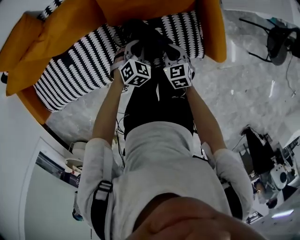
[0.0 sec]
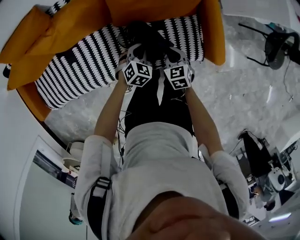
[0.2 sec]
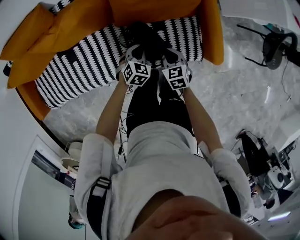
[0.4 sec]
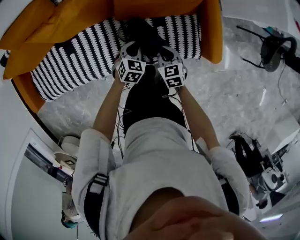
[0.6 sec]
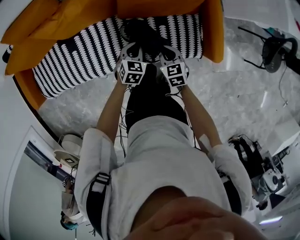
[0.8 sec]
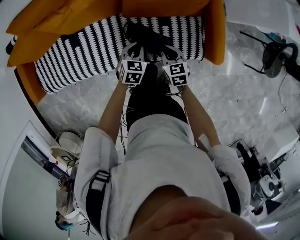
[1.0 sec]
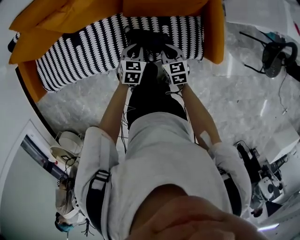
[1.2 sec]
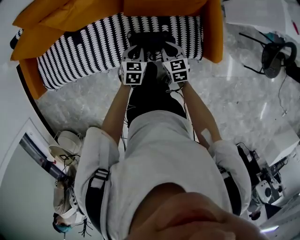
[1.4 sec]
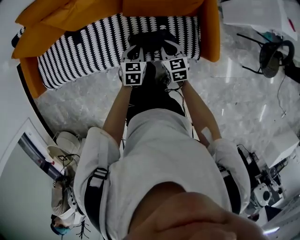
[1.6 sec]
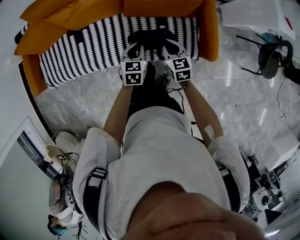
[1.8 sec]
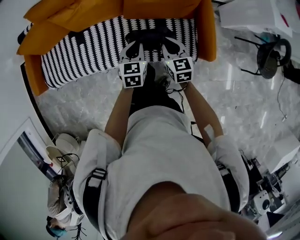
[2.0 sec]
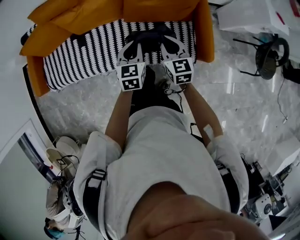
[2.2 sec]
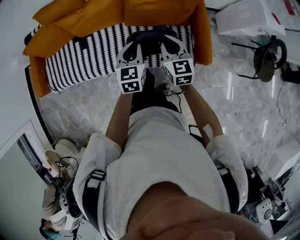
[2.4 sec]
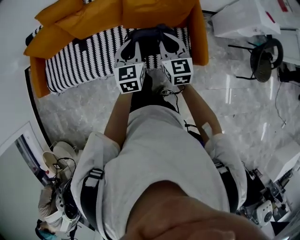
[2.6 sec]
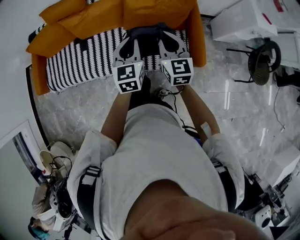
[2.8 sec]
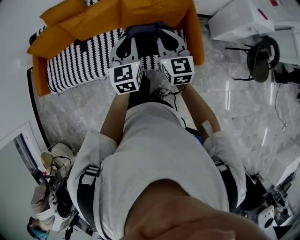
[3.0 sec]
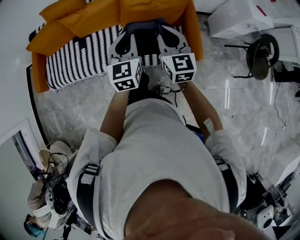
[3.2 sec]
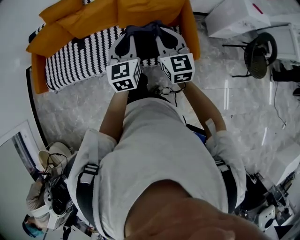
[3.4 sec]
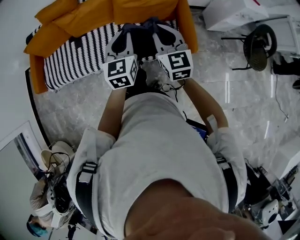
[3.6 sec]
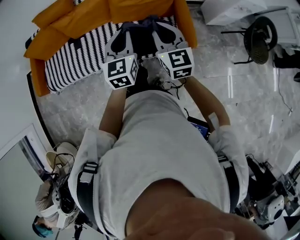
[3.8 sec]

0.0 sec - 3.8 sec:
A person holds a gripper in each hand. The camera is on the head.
0.0 sec - 1.2 sec: The right gripper heads upward and to the left, covering roughly 10 cm; the left gripper moves backward, to the left and upward, some 10 cm, and rotates roughly 40 degrees.
1.2 sec - 2.6 sec: The two grippers go roughly 25 cm upward. The left gripper changes its angle by approximately 30 degrees. Meanwhile the right gripper changes its angle by roughly 30 degrees.
2.6 sec - 3.8 sec: Both grippers move backward, upward and to the right, roughly 15 cm.

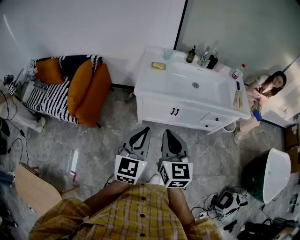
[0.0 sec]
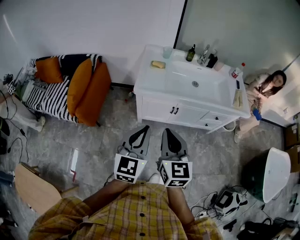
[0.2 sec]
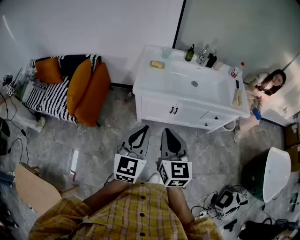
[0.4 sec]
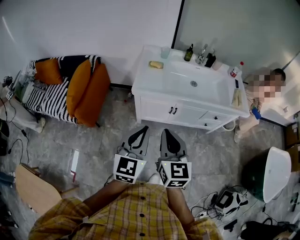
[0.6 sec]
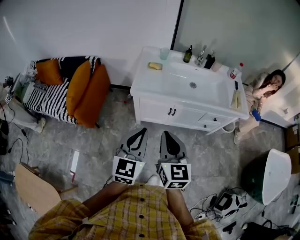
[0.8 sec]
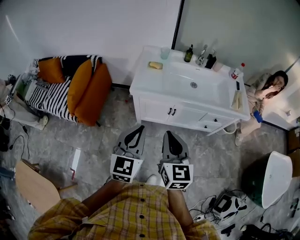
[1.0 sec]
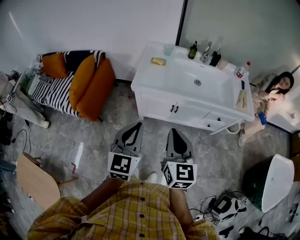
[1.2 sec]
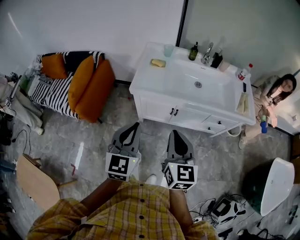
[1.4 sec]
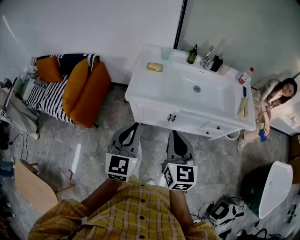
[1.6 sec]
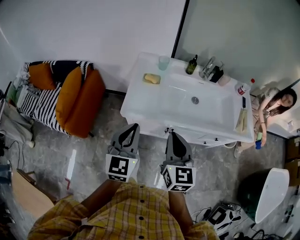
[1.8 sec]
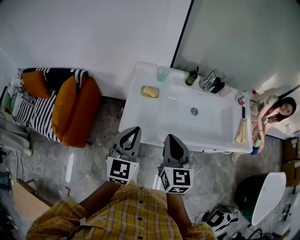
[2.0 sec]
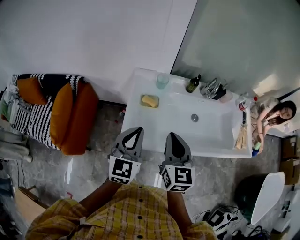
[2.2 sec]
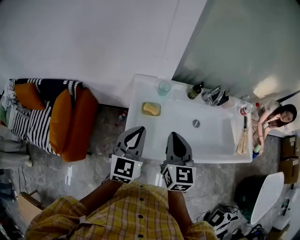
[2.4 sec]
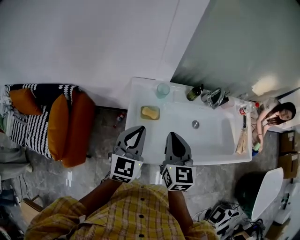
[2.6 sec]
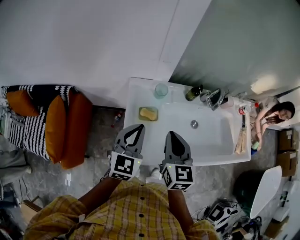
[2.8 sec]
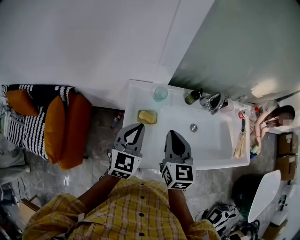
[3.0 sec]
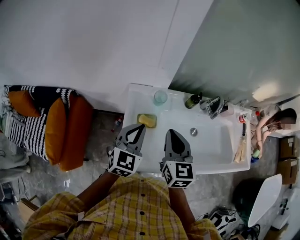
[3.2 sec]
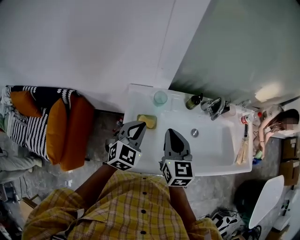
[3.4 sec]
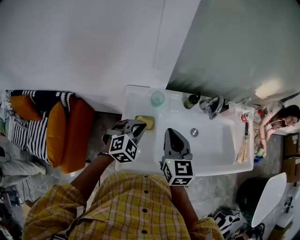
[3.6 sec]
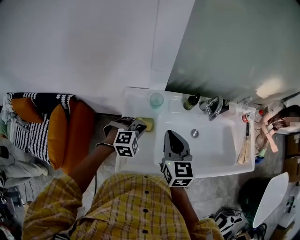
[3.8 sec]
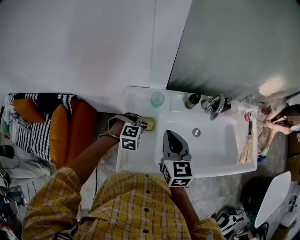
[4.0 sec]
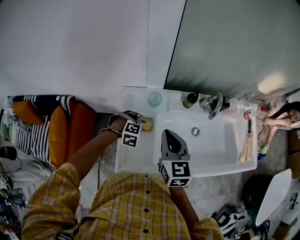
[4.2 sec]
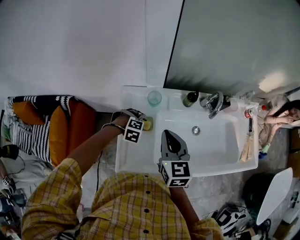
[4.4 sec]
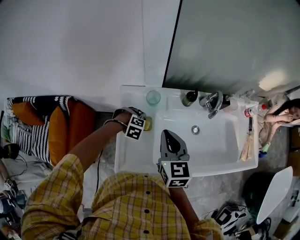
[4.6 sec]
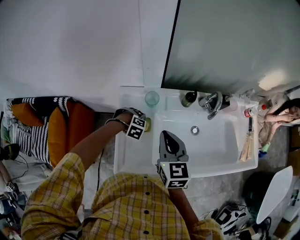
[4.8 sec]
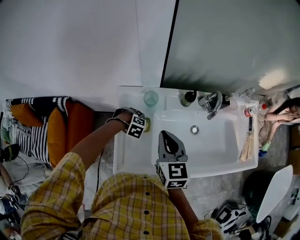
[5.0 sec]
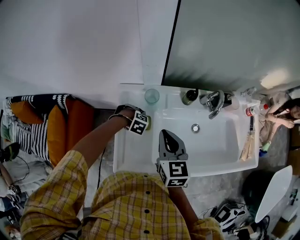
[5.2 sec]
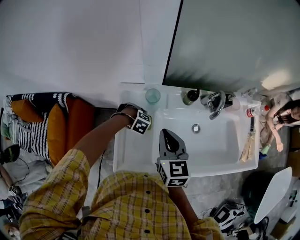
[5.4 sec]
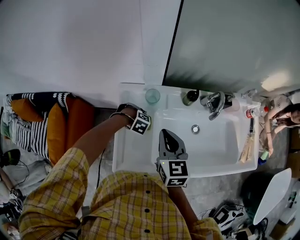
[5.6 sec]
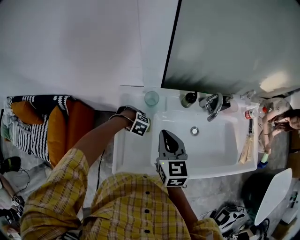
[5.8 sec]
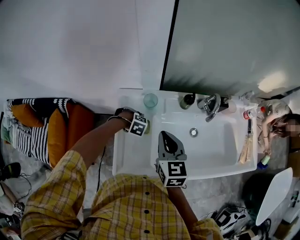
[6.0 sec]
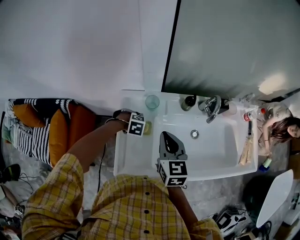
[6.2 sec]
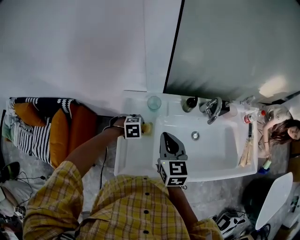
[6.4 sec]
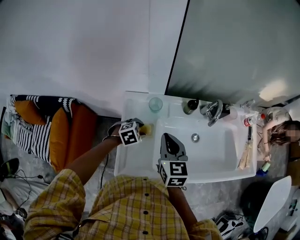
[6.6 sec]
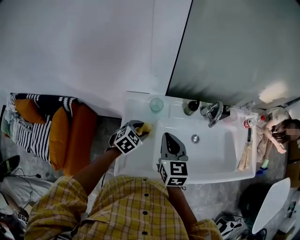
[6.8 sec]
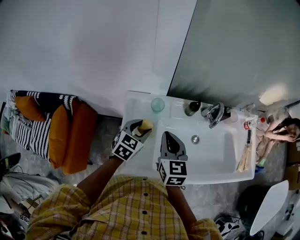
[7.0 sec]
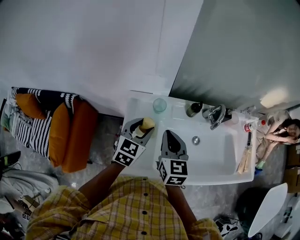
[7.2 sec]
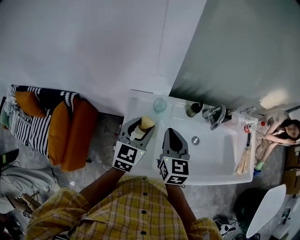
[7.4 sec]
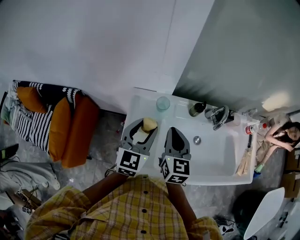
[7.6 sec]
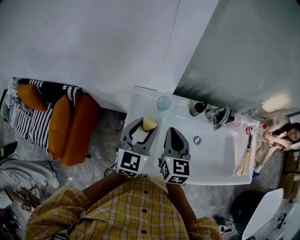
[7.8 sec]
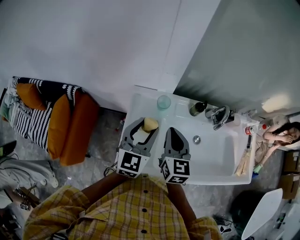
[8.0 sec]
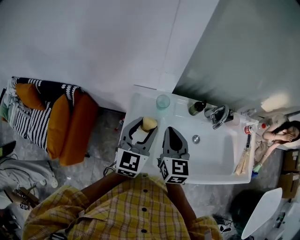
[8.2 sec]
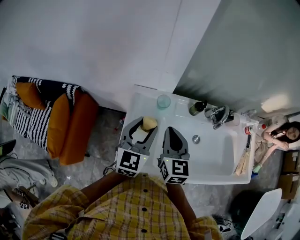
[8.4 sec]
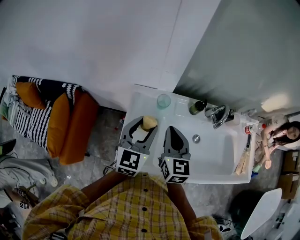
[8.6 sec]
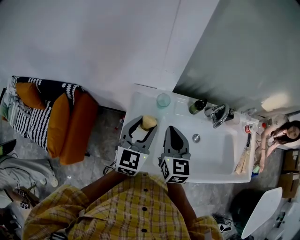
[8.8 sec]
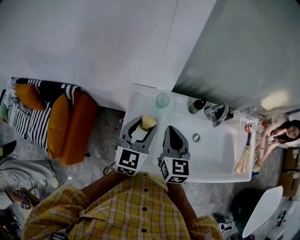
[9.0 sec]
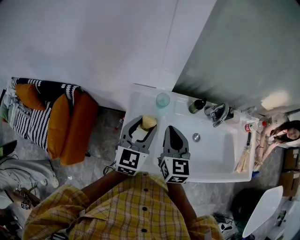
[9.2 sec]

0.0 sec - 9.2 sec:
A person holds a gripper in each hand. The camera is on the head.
0.0 sec - 1.6 sec: The right gripper is displaced forward and to the right by some 15 cm. The left gripper is displaced forward by some 10 cm.
1.6 sec - 3.0 sec: The two grippers travel together, forward, some 40 cm.
3.0 sec - 4.6 sec: The left gripper is displaced downward by approximately 25 cm, tips its fingers downward by some 60 degrees, and opens up; the right gripper moves some 10 cm.
4.6 sec - 6.2 sec: There are only small adjustments of the grippers.
6.2 sec - 7.6 sec: The left gripper shifts approximately 25 cm upward, and angles its fingers upward, by about 70 degrees.
7.6 sec - 9.2 sec: The grippers move only a little.

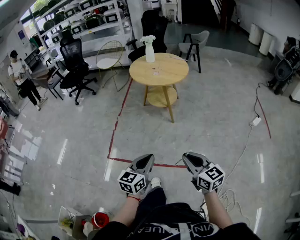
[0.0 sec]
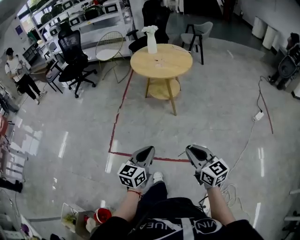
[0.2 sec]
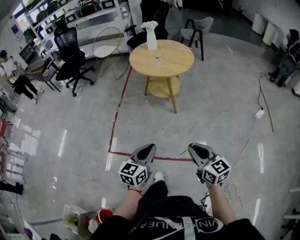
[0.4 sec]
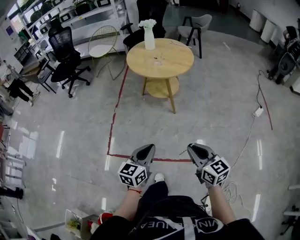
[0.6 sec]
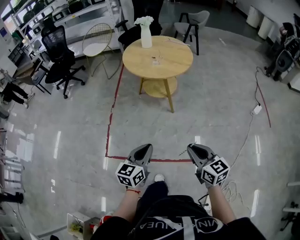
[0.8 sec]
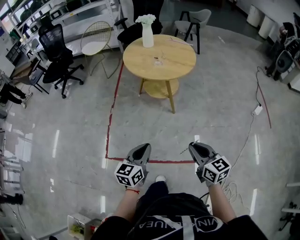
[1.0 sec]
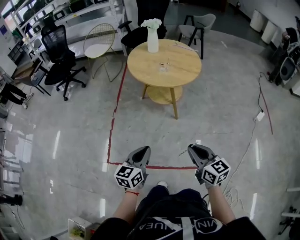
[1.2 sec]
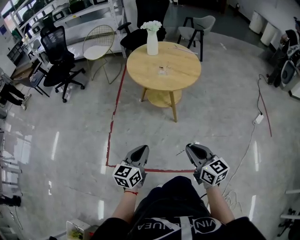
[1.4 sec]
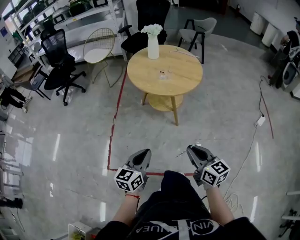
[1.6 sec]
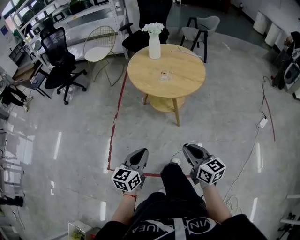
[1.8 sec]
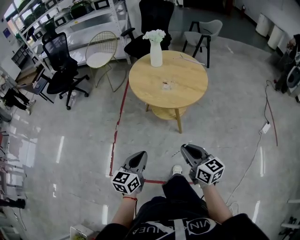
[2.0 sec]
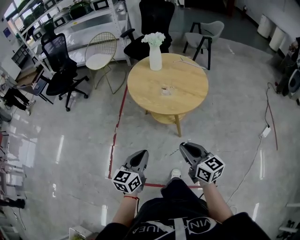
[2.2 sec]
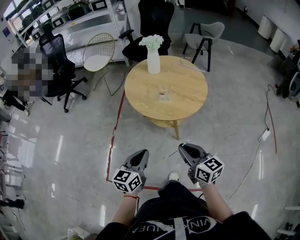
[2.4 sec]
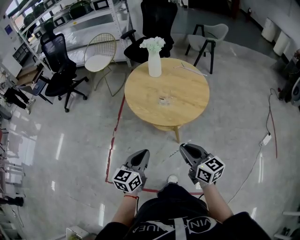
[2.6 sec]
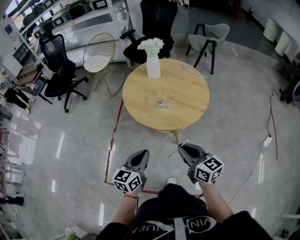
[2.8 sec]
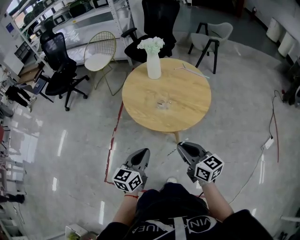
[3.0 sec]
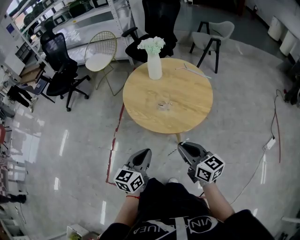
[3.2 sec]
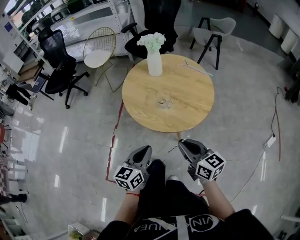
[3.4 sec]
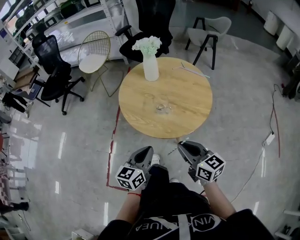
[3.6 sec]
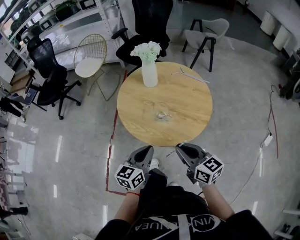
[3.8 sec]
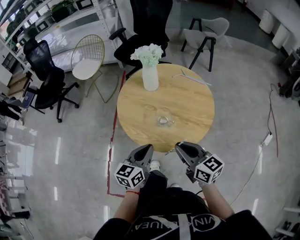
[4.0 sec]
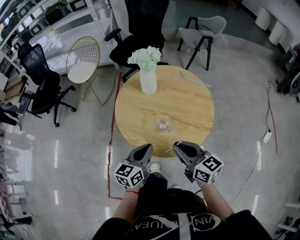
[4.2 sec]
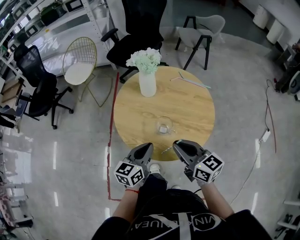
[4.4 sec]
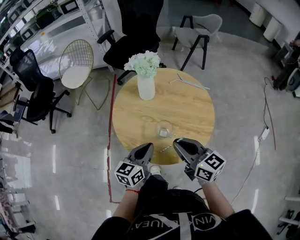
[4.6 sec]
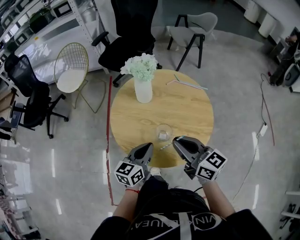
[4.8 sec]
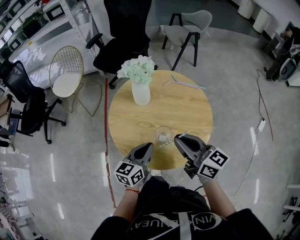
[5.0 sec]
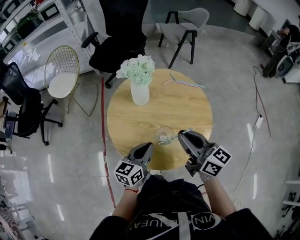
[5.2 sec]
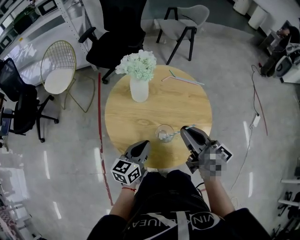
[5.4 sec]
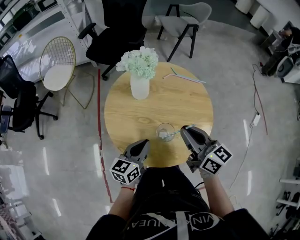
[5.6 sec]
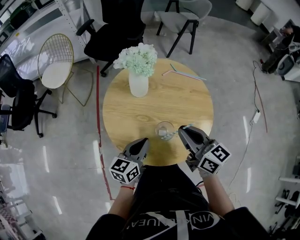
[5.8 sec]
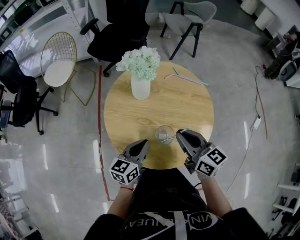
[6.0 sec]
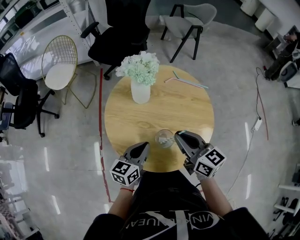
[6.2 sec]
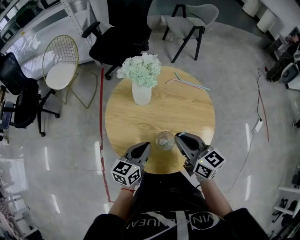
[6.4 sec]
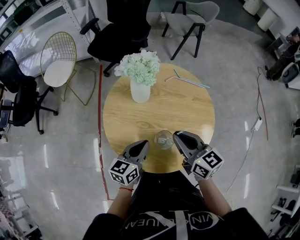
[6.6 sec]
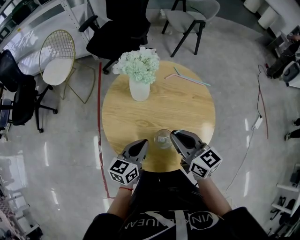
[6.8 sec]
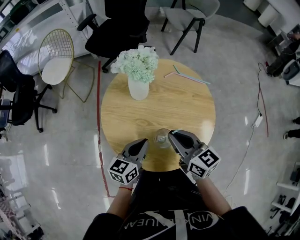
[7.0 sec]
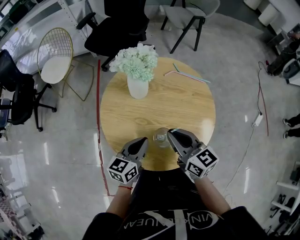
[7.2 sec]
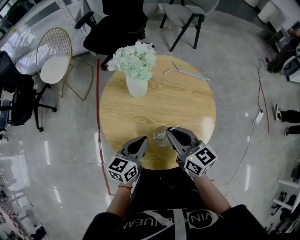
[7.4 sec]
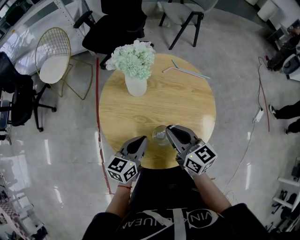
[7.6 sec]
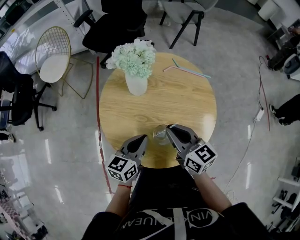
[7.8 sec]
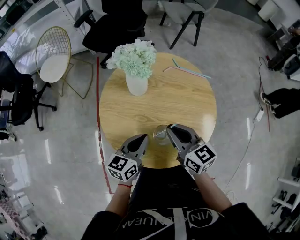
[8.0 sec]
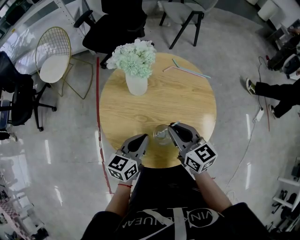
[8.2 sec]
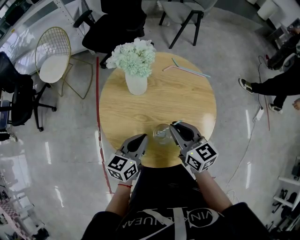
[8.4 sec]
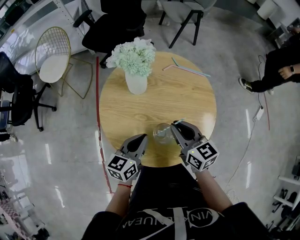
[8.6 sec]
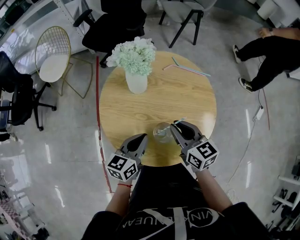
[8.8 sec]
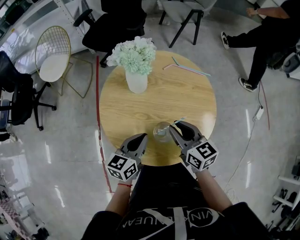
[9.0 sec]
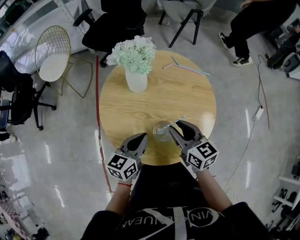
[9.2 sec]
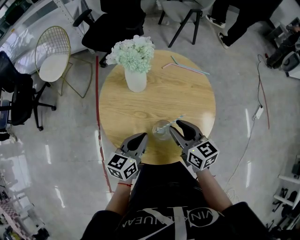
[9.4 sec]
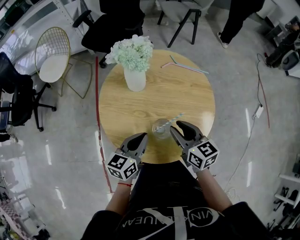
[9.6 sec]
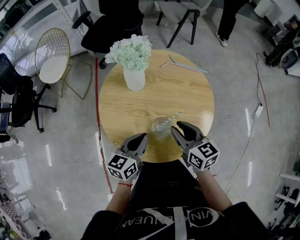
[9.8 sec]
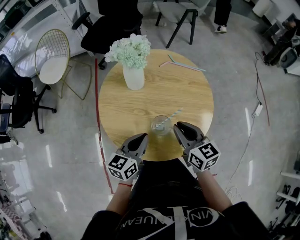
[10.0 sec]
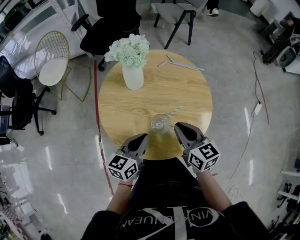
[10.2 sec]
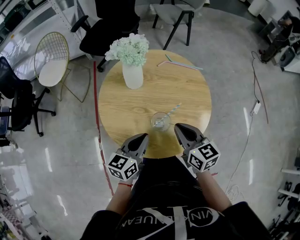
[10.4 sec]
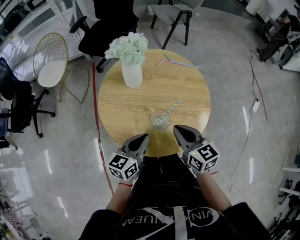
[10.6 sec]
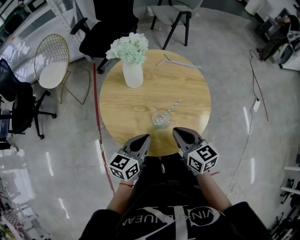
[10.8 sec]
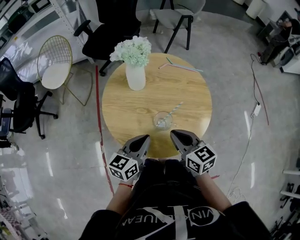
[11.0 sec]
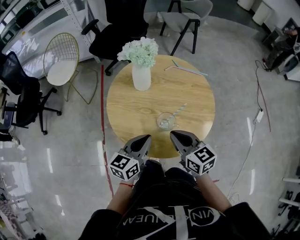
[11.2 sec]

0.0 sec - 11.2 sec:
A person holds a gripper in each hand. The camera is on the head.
0.0 sec - 1.6 sec: The two grippers go roughly 30 cm forward.
1.6 sec - 3.2 sec: The grippers both shift forward by approximately 25 cm.
3.2 sec - 4.8 sec: The grippers both shift forward by roughly 25 cm.
4.8 sec - 6.4 sec: The two grippers go some 5 cm forward.
6.4 sec - 8.0 sec: There are only small adjustments of the grippers.
8.0 sec - 9.6 sec: The right gripper opens its fingers.
9.6 sec - 11.2 sec: The right gripper is displaced backward by about 5 cm, and closes its fingers. Meanwhile the left gripper shifts by approximately 5 cm.
